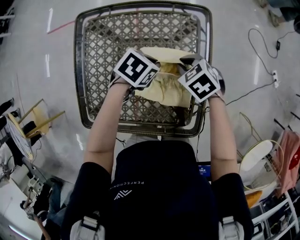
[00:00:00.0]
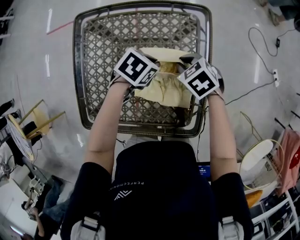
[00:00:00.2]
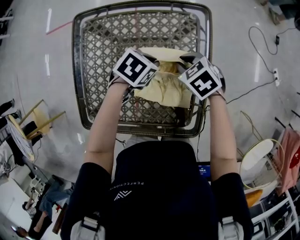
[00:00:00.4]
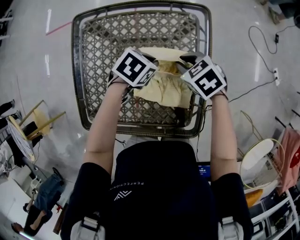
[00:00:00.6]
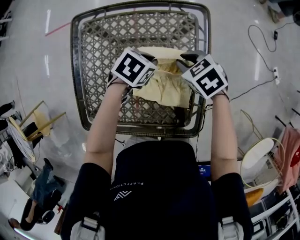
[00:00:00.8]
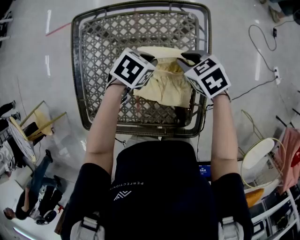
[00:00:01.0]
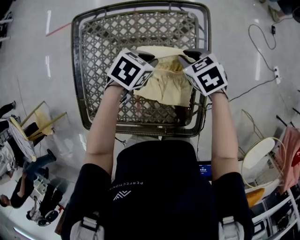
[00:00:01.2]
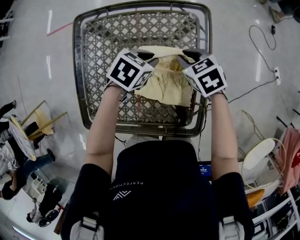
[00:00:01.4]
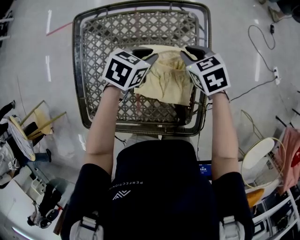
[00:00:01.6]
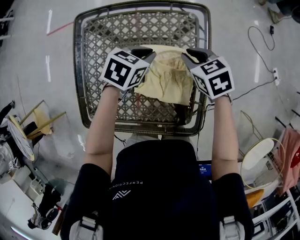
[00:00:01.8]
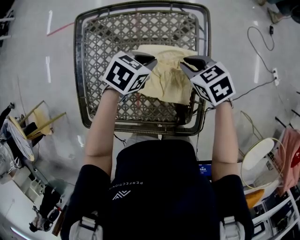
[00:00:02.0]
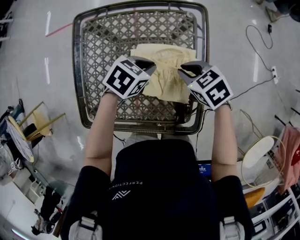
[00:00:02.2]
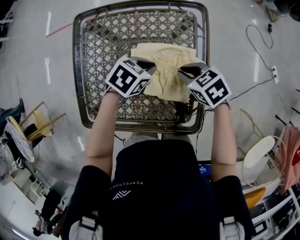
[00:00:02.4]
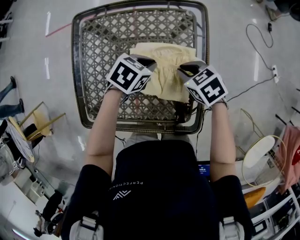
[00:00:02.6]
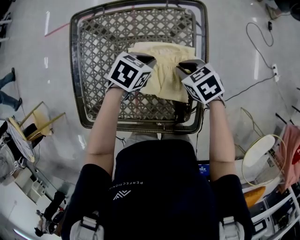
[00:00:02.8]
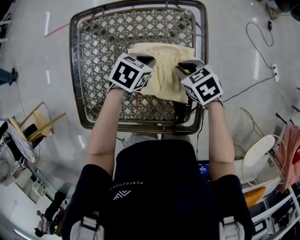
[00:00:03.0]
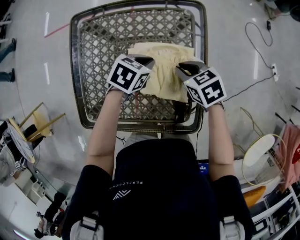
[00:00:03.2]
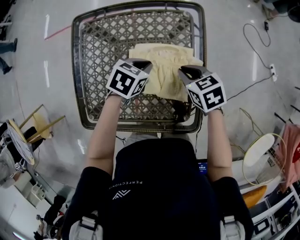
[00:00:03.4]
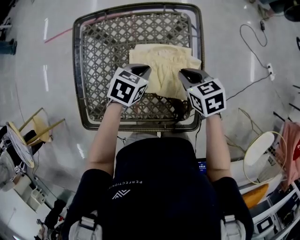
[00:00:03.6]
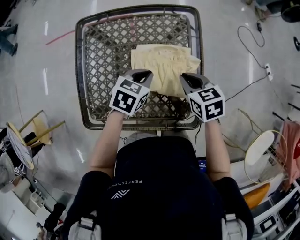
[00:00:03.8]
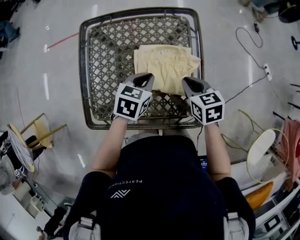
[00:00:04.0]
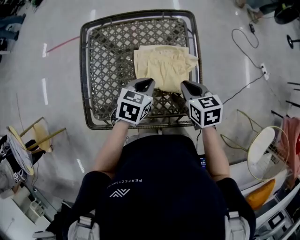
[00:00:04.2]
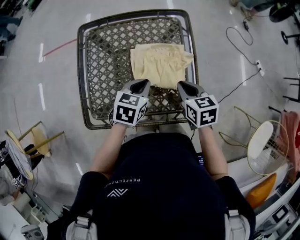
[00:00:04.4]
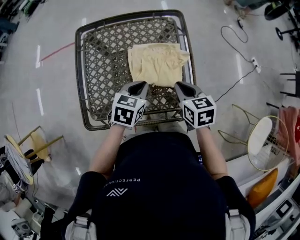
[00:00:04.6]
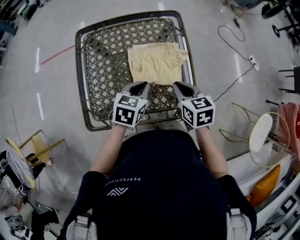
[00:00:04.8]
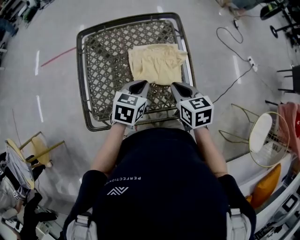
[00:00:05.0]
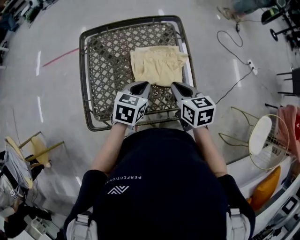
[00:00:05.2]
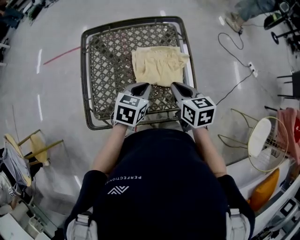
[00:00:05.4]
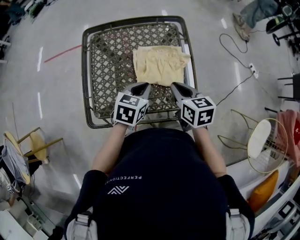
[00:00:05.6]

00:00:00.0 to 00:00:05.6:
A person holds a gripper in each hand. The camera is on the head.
00:00:00.0 to 00:00:01.4: There are only small adjustments of the grippers.
00:00:01.4 to 00:00:02.8: The right gripper ends up roughly 5 cm from where it was.
00:00:02.8 to 00:00:04.2: The left gripper shifts by roughly 15 cm. Meanwhile the right gripper ends up about 10 cm from where it was, and swivels approximately 30 degrees.
00:00:04.2 to 00:00:05.6: The right gripper ends up about 5 cm from where it was. The left gripper moves approximately 5 cm.

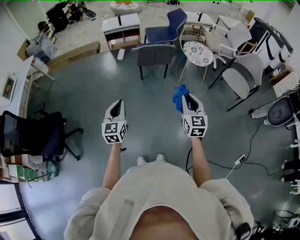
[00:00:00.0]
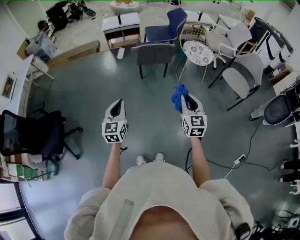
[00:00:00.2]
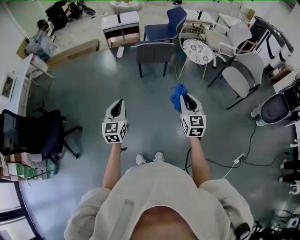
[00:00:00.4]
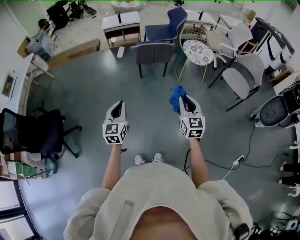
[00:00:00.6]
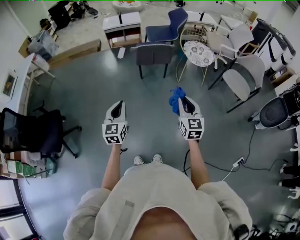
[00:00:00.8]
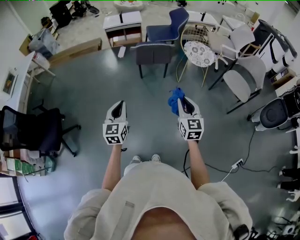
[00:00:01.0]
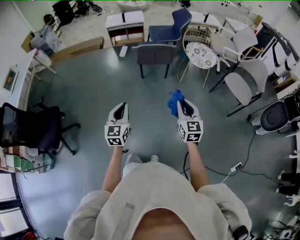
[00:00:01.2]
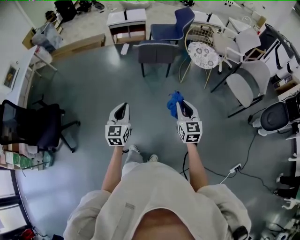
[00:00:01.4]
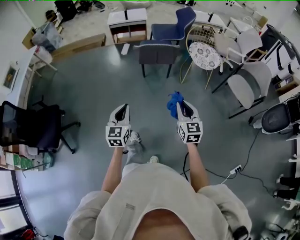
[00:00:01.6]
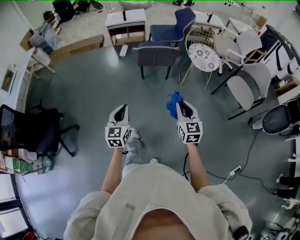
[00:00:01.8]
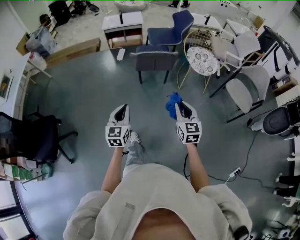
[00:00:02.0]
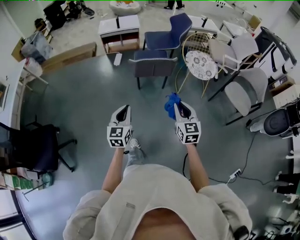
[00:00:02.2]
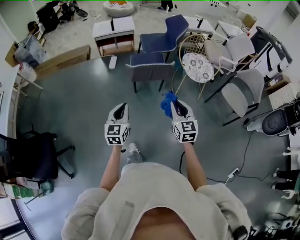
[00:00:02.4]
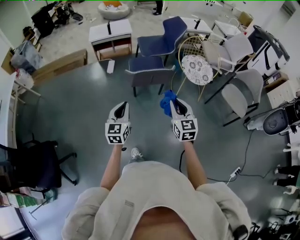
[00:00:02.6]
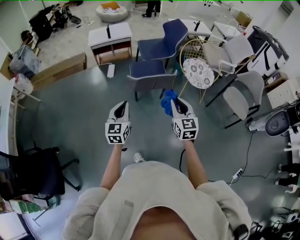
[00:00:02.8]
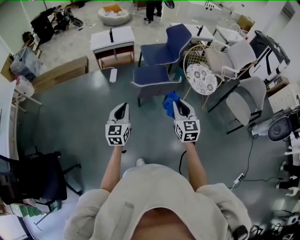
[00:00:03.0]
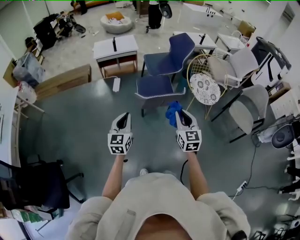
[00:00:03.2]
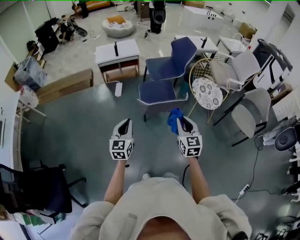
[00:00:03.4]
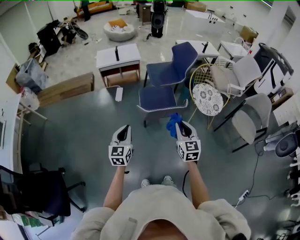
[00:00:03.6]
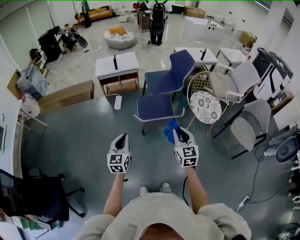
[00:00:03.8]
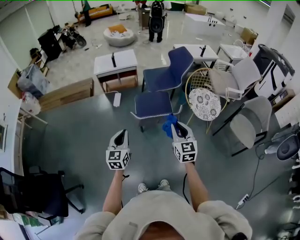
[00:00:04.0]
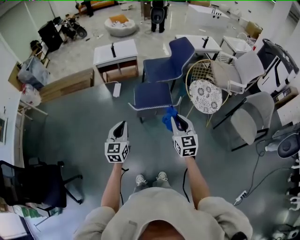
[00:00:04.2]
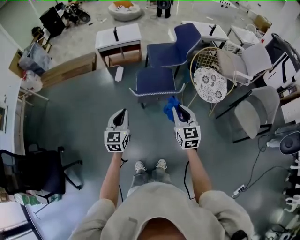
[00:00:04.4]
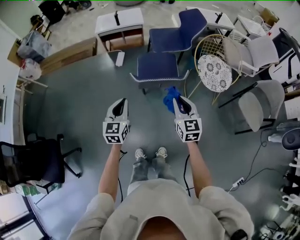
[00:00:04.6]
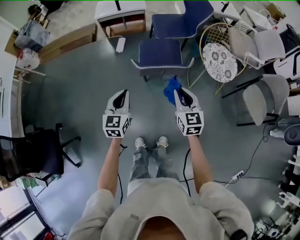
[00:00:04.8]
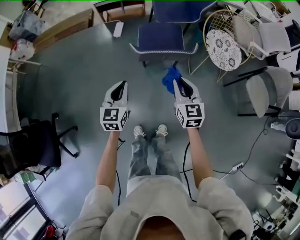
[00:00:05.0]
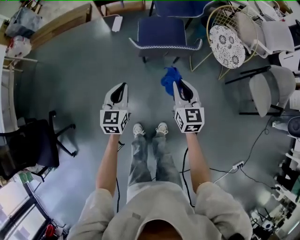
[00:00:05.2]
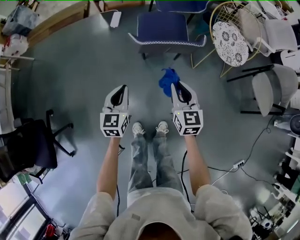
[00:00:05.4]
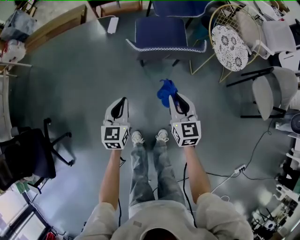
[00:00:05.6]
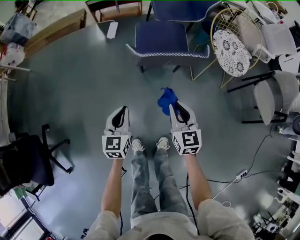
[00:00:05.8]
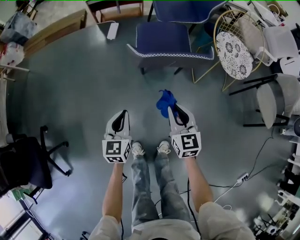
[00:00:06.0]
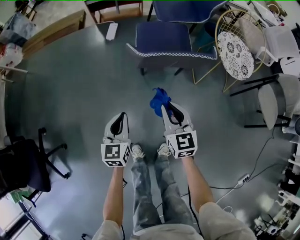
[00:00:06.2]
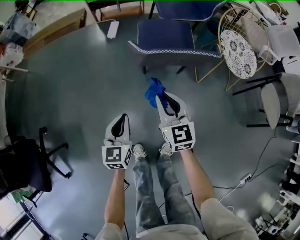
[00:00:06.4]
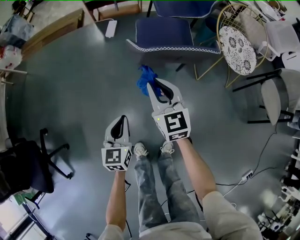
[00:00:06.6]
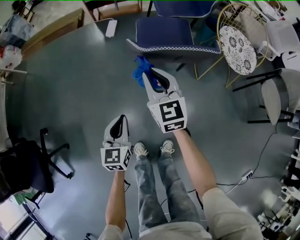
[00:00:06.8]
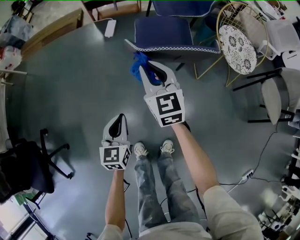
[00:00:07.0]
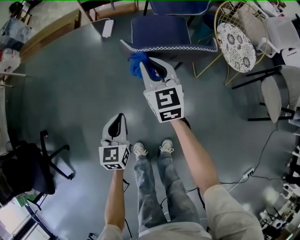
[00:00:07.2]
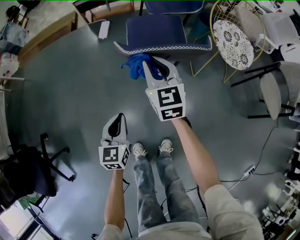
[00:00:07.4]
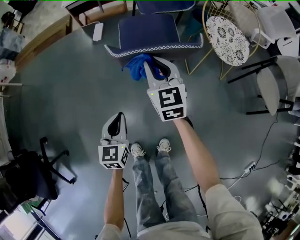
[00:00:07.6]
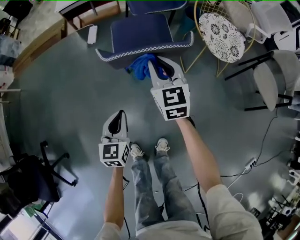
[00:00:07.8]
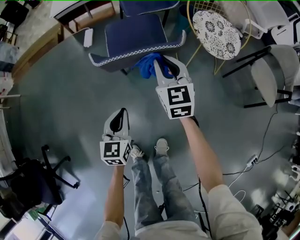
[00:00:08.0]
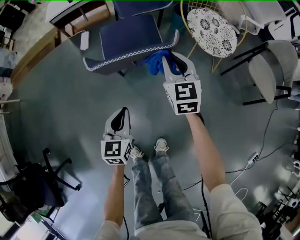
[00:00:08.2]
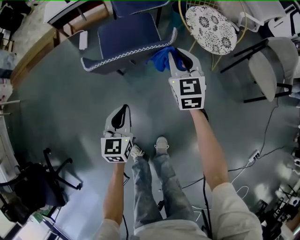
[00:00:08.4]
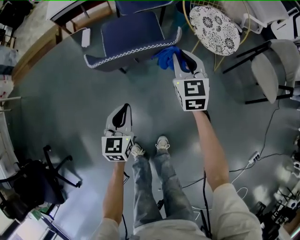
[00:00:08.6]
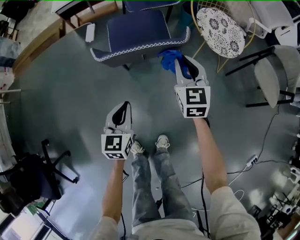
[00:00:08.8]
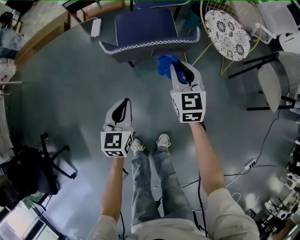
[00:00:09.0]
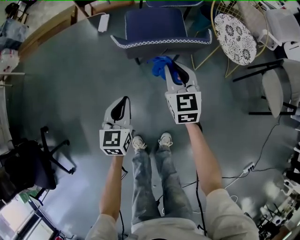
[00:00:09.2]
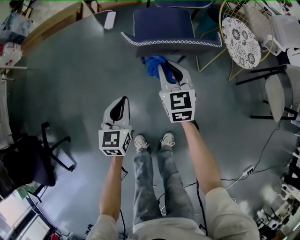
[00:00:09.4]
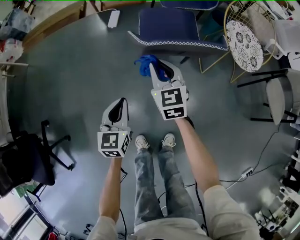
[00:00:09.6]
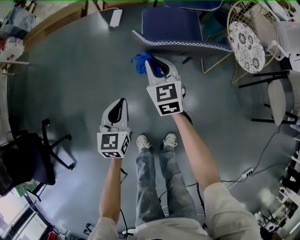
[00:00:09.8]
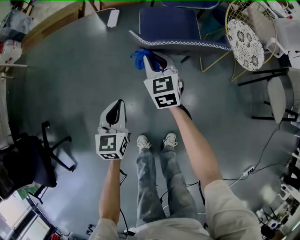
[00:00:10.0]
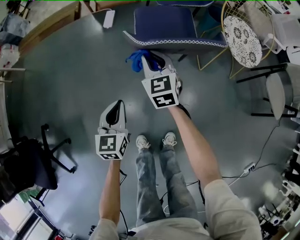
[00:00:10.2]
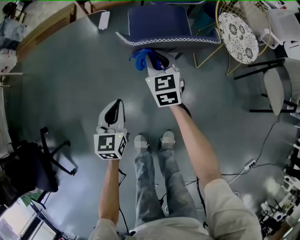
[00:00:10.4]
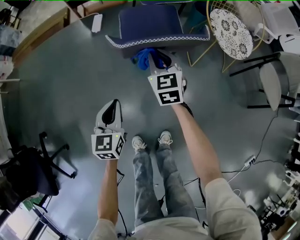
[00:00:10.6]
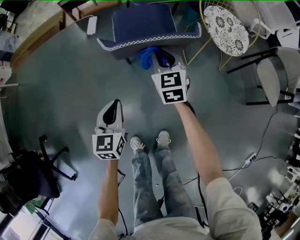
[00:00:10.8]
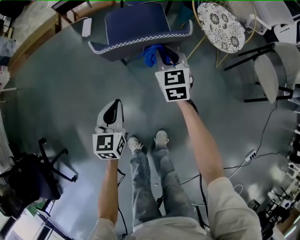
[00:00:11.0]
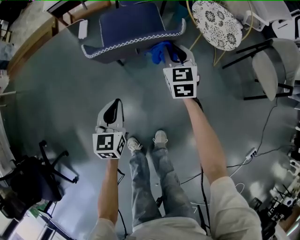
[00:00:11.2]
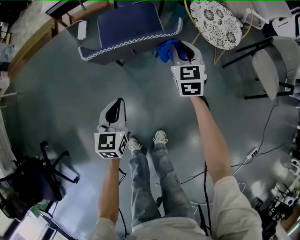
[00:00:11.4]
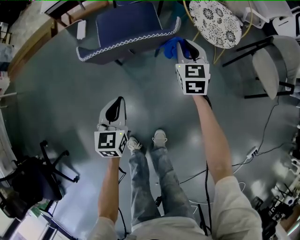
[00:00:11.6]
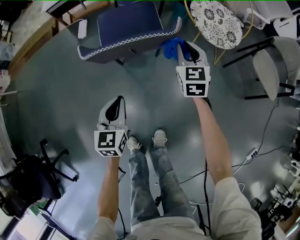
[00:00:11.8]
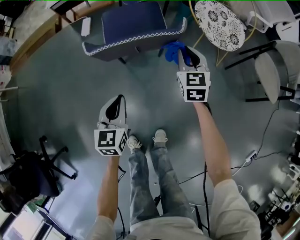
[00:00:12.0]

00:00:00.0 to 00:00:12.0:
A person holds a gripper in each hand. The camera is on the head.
00:00:00.0 to 00:00:01.6: The right gripper heads downward, covering approximately 5 cm. Meanwhile the left gripper goes approximately 5 cm to the right.
00:00:01.6 to 00:00:03.0: The right gripper heads forward and to the left, covering about 35 cm, while the left gripper heads forward, covering approximately 35 cm.
00:00:03.0 to 00:00:04.4: Both grippers move forward and to the right, some 10 cm.
00:00:04.4 to 00:00:06.0: The grippers both shift downward by some 30 cm.
00:00:06.0 to 00:00:07.6: The left gripper shifts by some 5 cm, while the right gripper shifts about 15 cm forward.
00:00:07.6 to 00:00:09.0: The left gripper is displaced to the right by about 5 cm. The right gripper shifts approximately 10 cm to the right.
00:00:09.0 to 00:00:10.4: The left gripper travels to the left by roughly 10 cm, while the right gripper heads to the left, covering about 15 cm.
00:00:10.4 to 00:00:12.0: The right gripper shifts about 25 cm to the right. The left gripper travels to the right by roughly 15 cm.

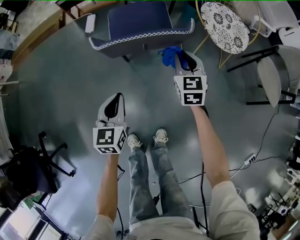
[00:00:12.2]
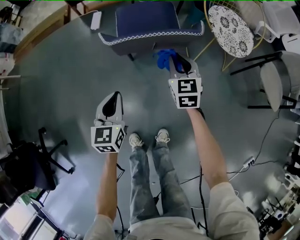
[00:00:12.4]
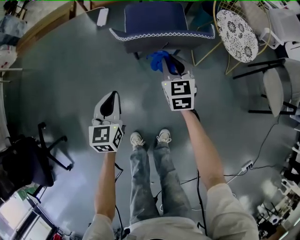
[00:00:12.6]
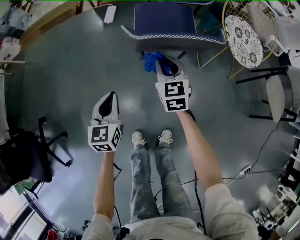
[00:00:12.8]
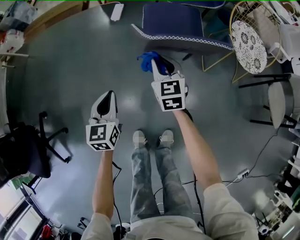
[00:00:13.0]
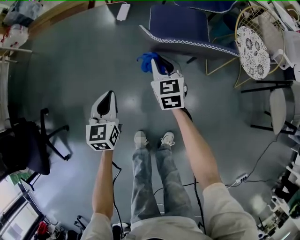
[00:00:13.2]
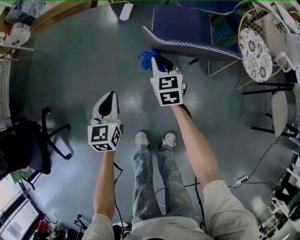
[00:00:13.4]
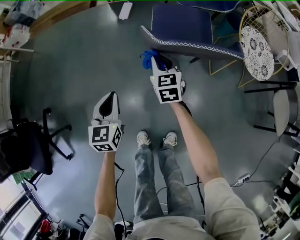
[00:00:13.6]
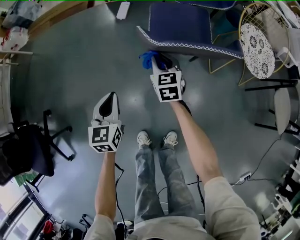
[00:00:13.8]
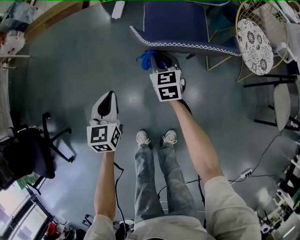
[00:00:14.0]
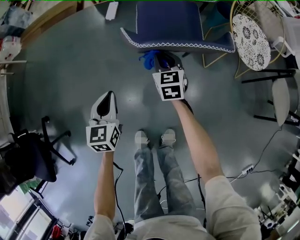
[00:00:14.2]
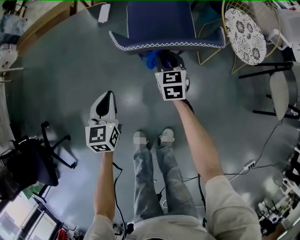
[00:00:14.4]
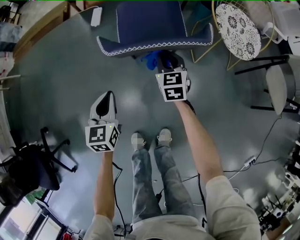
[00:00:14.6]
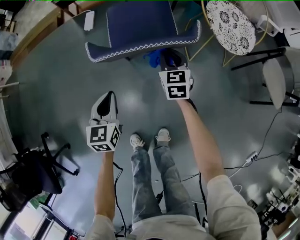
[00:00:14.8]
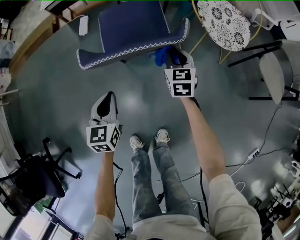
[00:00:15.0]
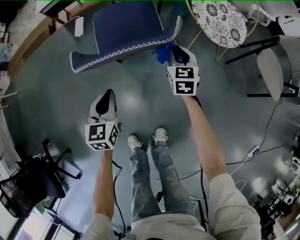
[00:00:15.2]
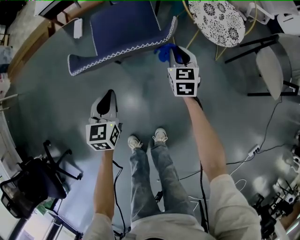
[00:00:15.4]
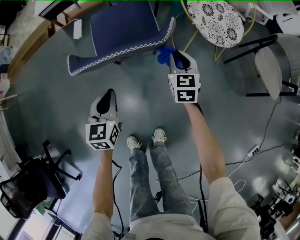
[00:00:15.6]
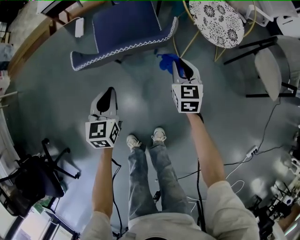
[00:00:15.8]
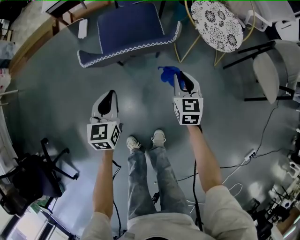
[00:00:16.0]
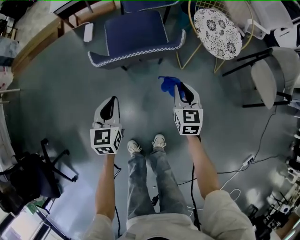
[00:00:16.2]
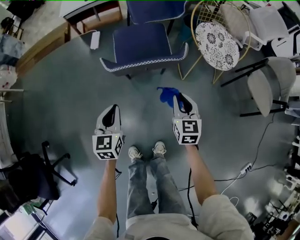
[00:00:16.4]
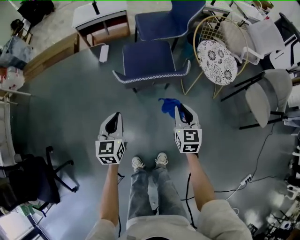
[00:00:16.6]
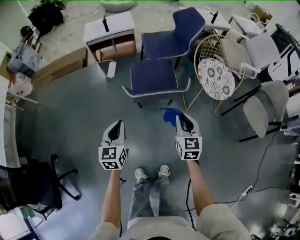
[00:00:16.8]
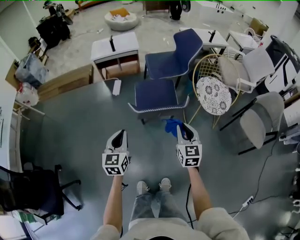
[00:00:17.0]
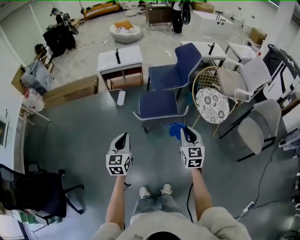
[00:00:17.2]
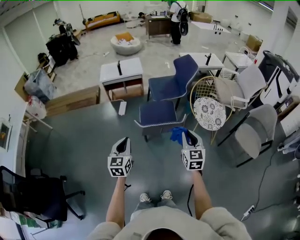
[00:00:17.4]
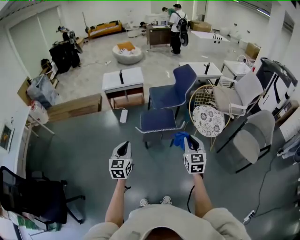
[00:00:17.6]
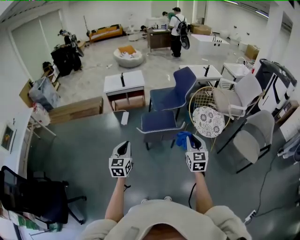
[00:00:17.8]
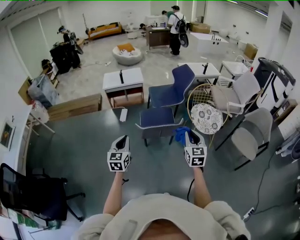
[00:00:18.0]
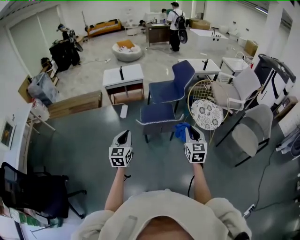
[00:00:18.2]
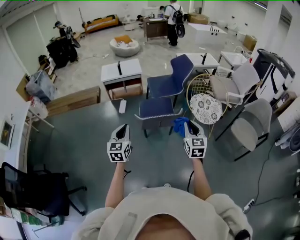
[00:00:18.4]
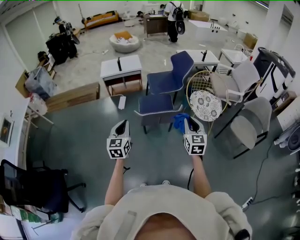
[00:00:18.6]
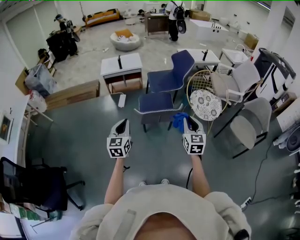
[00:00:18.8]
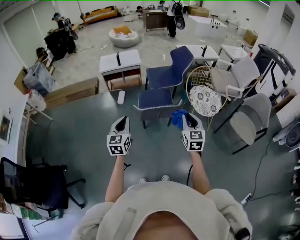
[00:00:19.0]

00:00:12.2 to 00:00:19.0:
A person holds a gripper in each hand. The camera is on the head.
00:00:12.2 to 00:00:13.6: Both grippers travel together to the left, about 25 cm.
00:00:13.6 to 00:00:15.0: The left gripper travels to the right by about 20 cm; the right gripper heads to the right, covering approximately 30 cm, and rotates some 20 degrees.
00:00:15.0 to 00:00:16.2: The left gripper shifts by roughly 5 cm, while the right gripper travels backward by approximately 15 cm.
00:00:16.2 to 00:00:17.6: Both grippers travel together upward, approximately 35 cm.
00:00:17.6 to 00:00:19.0: The grippers make only small movements.
